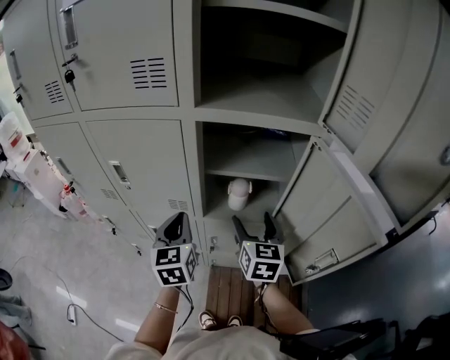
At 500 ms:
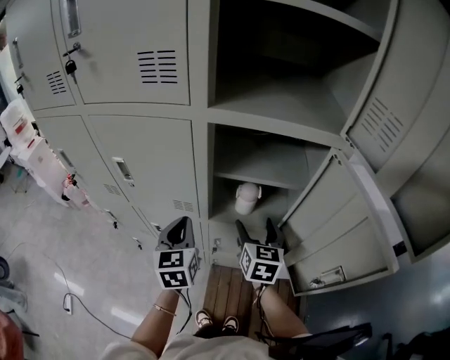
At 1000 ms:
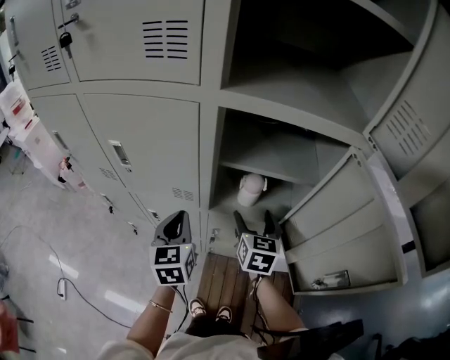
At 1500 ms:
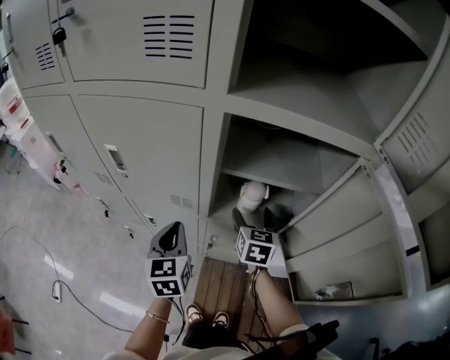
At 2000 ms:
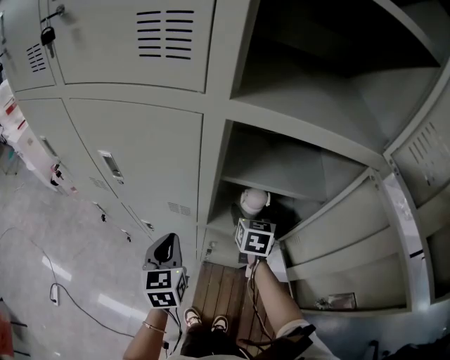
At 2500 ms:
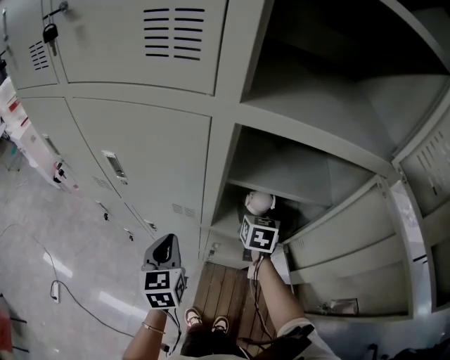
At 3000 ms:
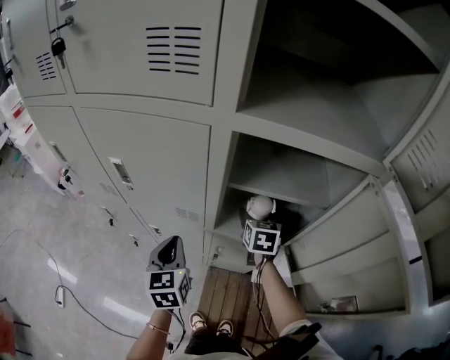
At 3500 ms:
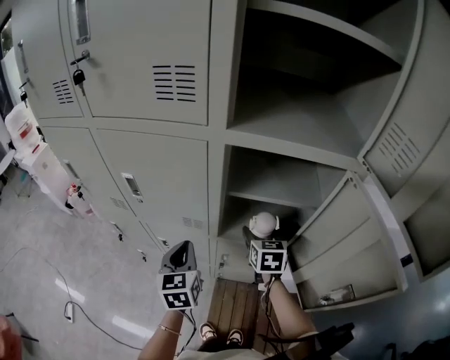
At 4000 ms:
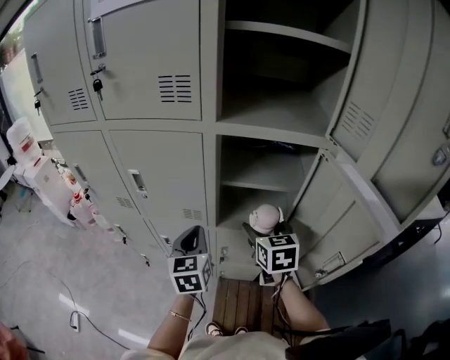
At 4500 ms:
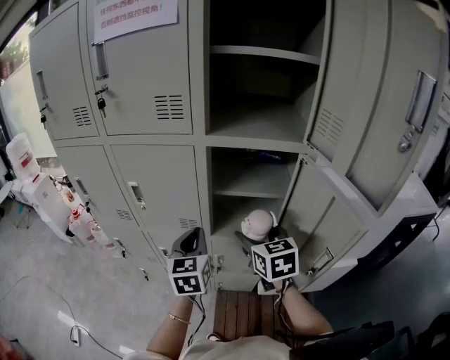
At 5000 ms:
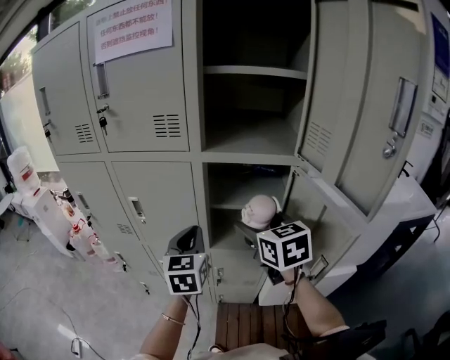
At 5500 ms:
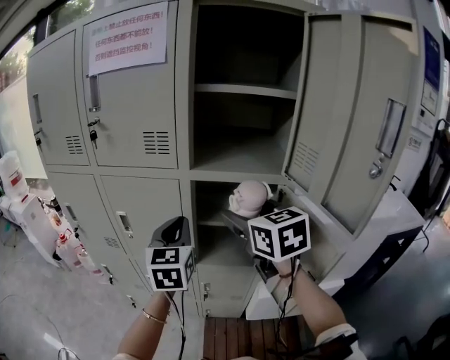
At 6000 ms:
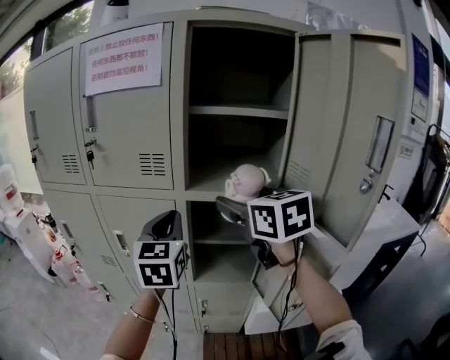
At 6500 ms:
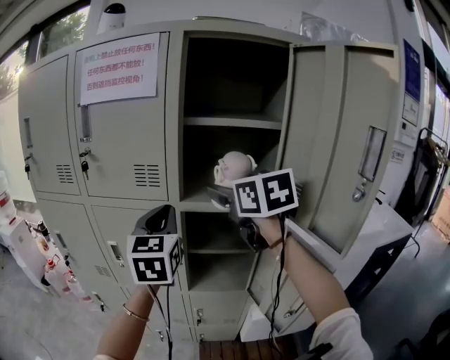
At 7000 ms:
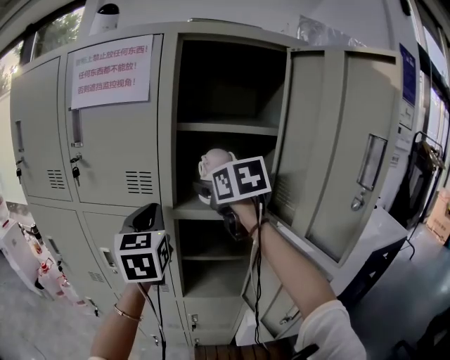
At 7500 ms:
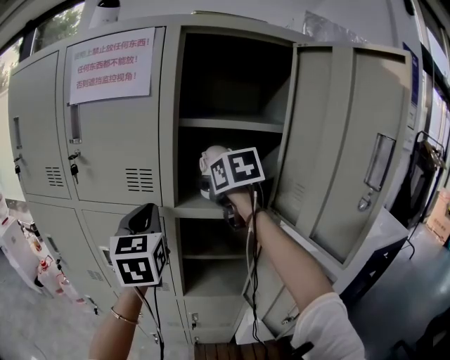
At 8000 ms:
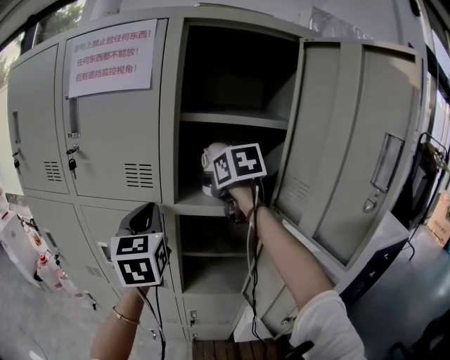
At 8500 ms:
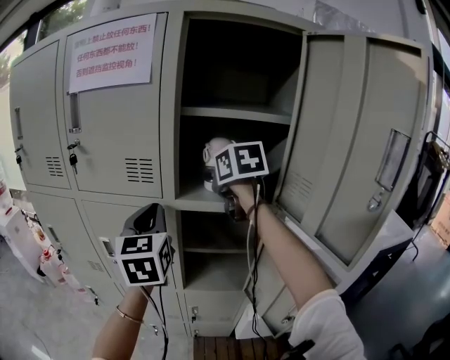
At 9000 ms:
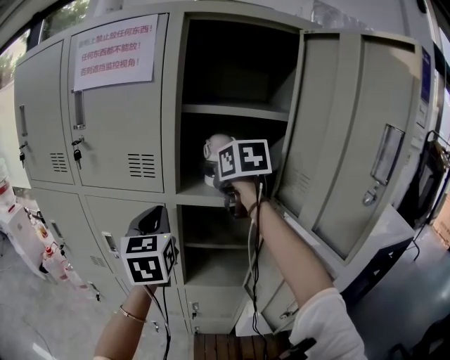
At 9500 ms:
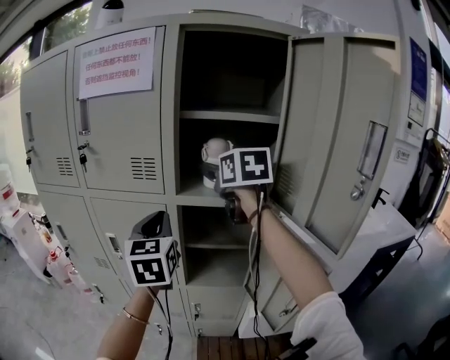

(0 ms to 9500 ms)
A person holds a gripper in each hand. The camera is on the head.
0 ms - 2000 ms: The right gripper travels forward and downward by approximately 20 cm. The left gripper shifts roughly 10 cm downward.
2000 ms - 4000 ms: The right gripper heads backward and upward, covering some 20 cm. Meanwhile the left gripper moves upward, some 10 cm.
4000 ms - 5500 ms: The grippers both shift upward by roughly 20 cm.
5500 ms - 7500 ms: The right gripper goes approximately 20 cm forward and upward, while the left gripper goes approximately 15 cm upward and forward.
7500 ms - 9500 ms: The left gripper ends up approximately 5 cm from where it was.

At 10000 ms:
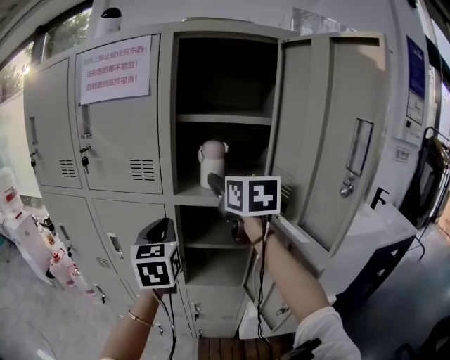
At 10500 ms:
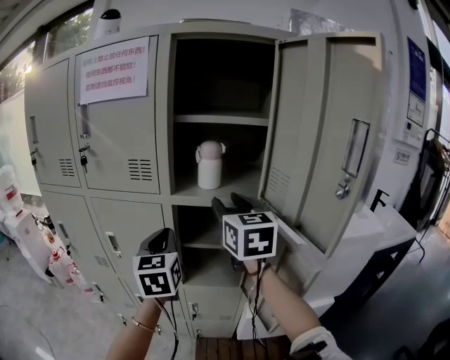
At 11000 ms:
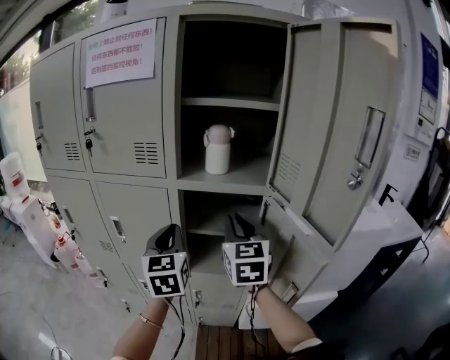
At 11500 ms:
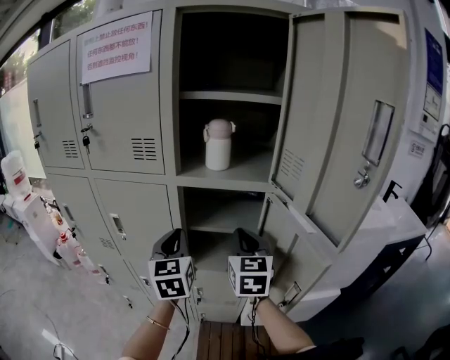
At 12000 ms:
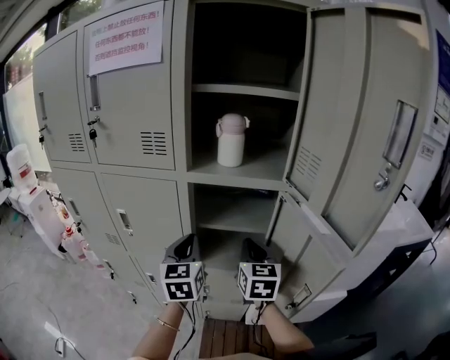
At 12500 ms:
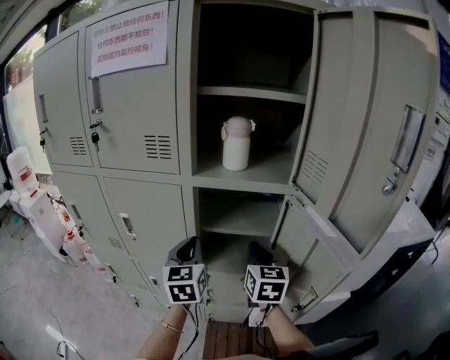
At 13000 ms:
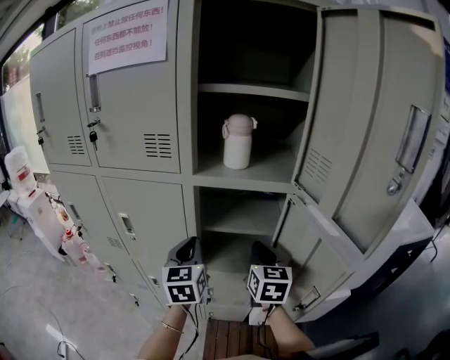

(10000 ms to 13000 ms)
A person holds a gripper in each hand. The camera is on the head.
10000 ms - 11500 ms: The left gripper shifts approximately 10 cm downward; the right gripper goes roughly 20 cm downward, and closes its fingers.
11500 ms - 13000 ms: The left gripper ends up some 5 cm from where it was, while the right gripper heads downward, covering approximately 5 cm.

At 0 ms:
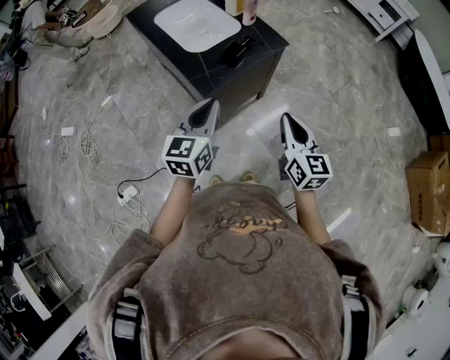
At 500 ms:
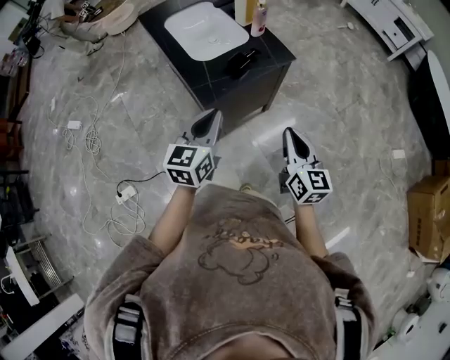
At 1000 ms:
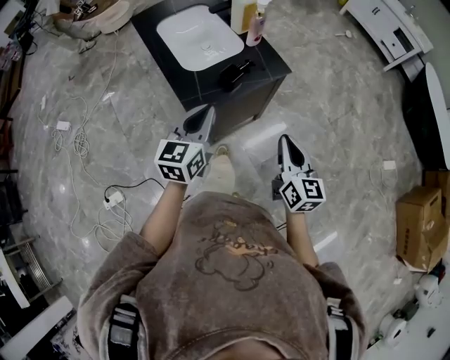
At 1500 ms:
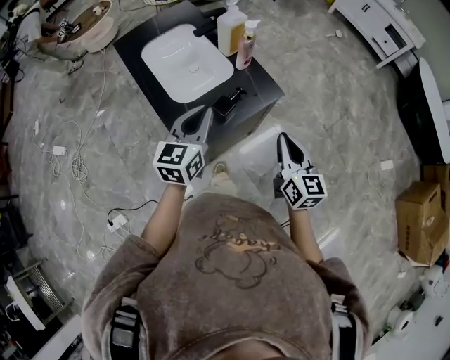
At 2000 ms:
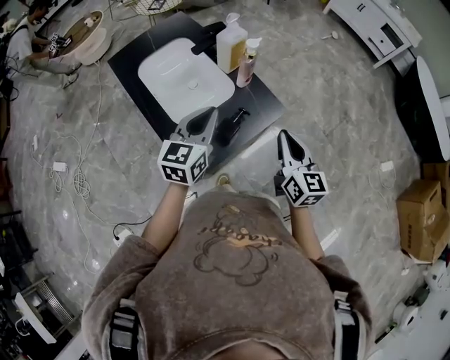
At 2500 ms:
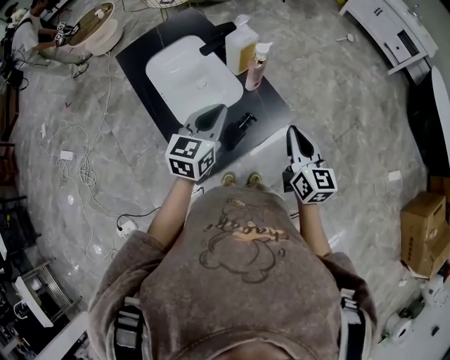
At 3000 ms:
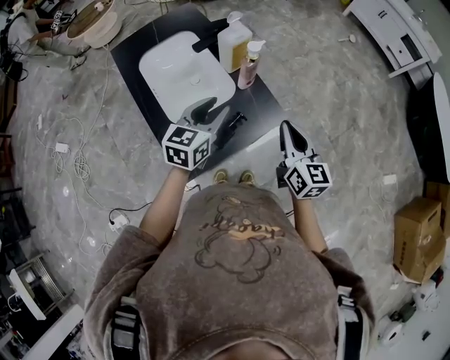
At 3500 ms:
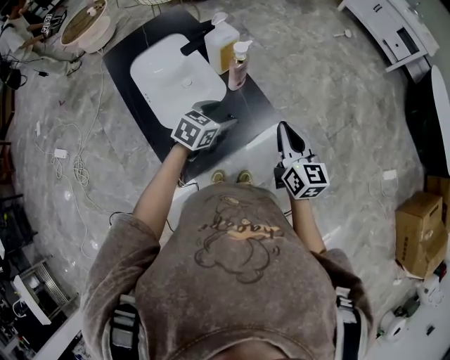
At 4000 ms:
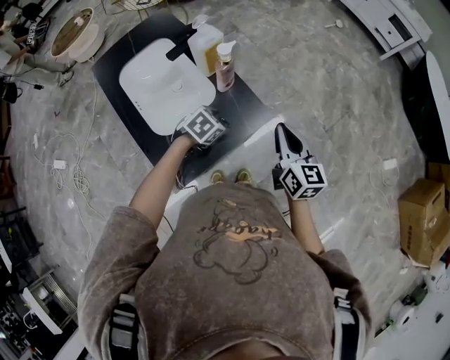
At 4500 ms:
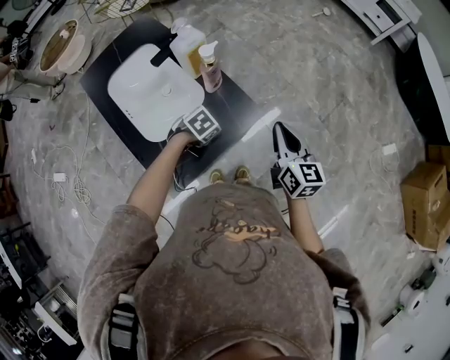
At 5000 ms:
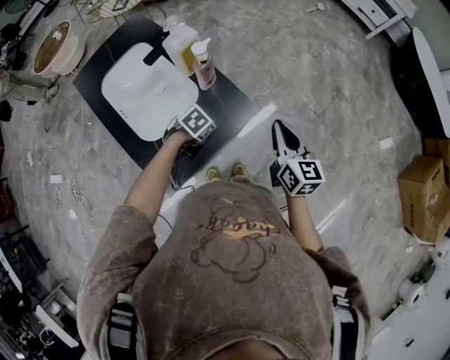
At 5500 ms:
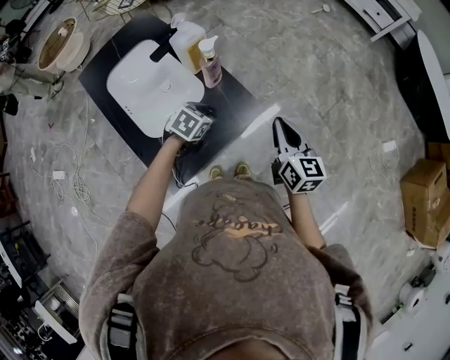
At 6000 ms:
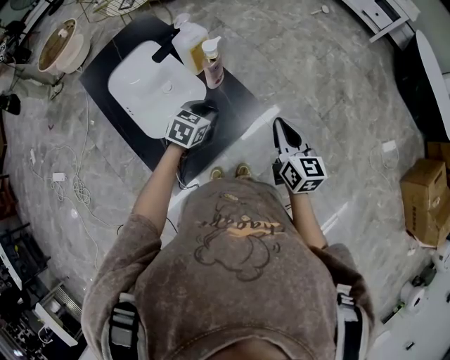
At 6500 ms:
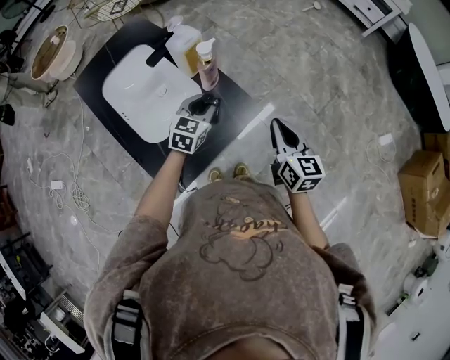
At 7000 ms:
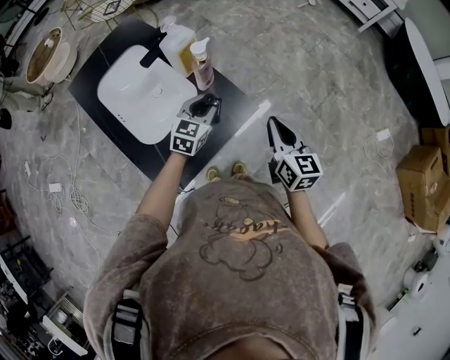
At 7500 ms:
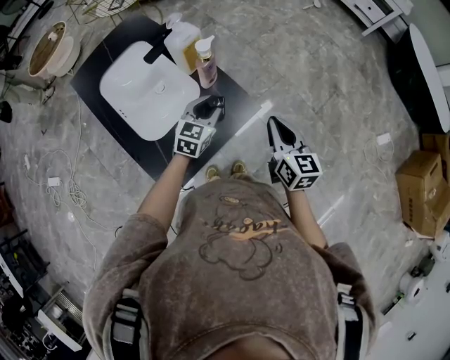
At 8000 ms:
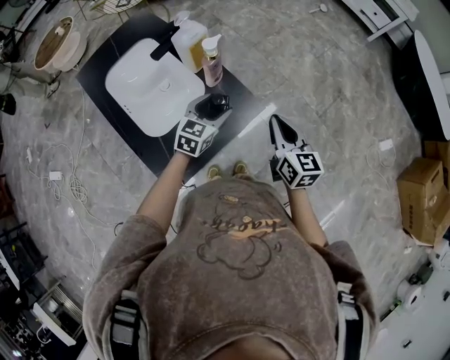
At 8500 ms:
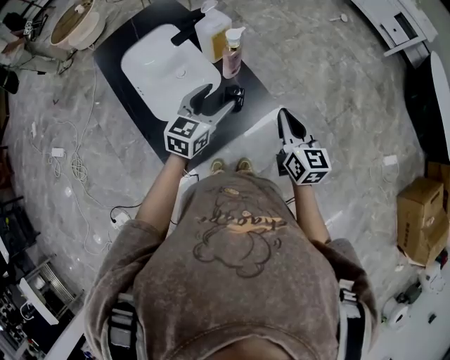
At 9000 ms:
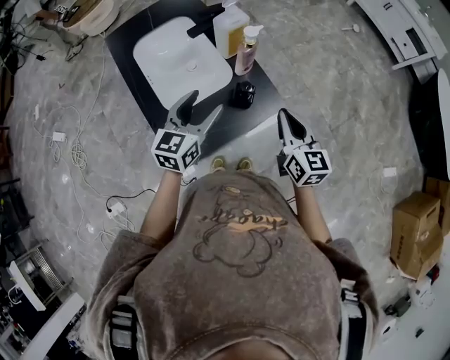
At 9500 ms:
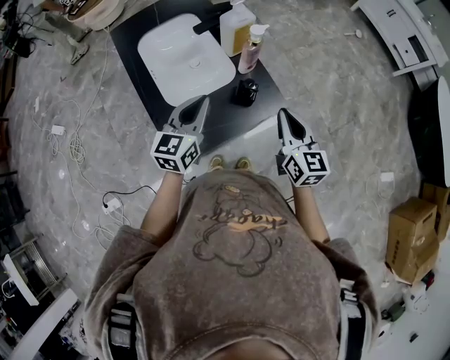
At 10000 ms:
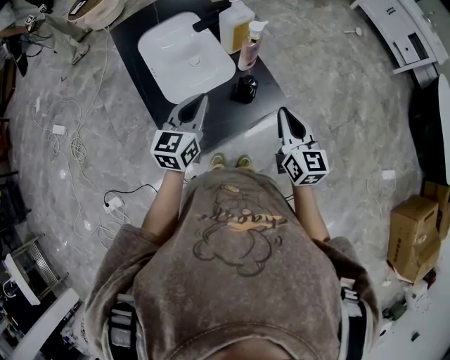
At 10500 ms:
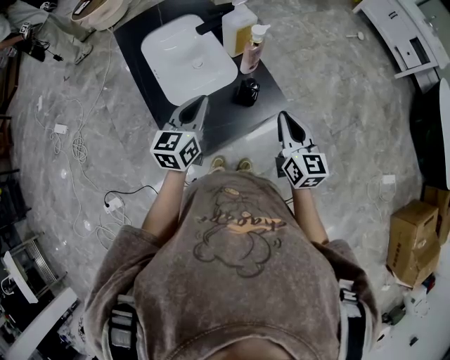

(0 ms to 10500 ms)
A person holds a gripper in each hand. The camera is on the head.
0 ms - 2000 ms: The grippers both shift forward by some 30 cm.
2000 ms - 4000 ms: The left gripper travels downward, to the right and forward by roughly 25 cm, points its fingers approximately 50 degrees further downward, and opens its fingers. The right gripper is displaced forward and to the right by some 10 cm.
4000 ms - 6500 ms: The left gripper moves upward and forward, approximately 10 cm, angles its fingers upward, by roughly 30 degrees, and closes.
6500 ms - 8500 ms: The left gripper heads upward and backward, covering roughly 10 cm, and opens up.
8500 ms - 10500 ms: The right gripper moves approximately 5 cm; the left gripper goes roughly 10 cm to the left and backward, changes its angle by approximately 20 degrees, and closes.

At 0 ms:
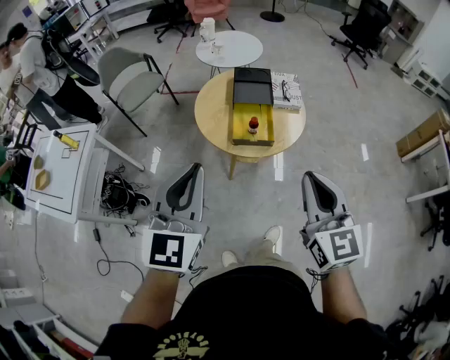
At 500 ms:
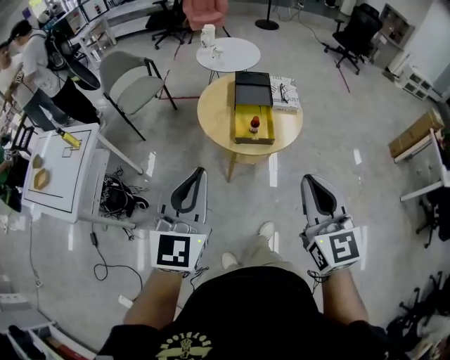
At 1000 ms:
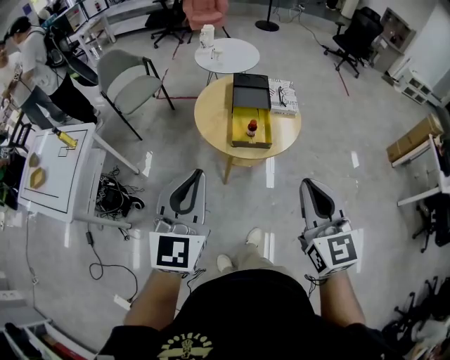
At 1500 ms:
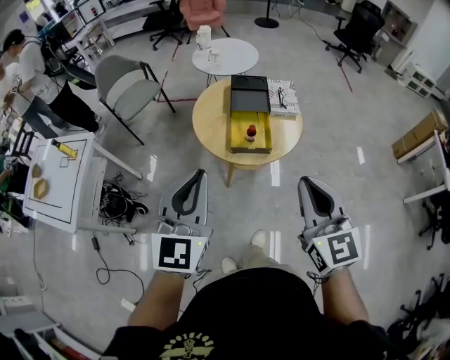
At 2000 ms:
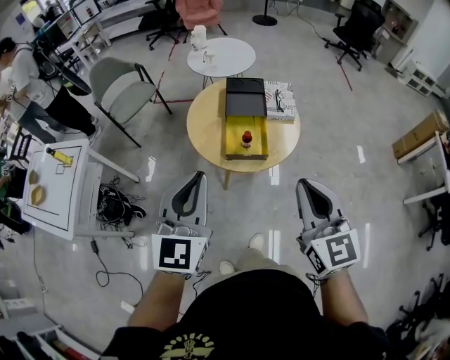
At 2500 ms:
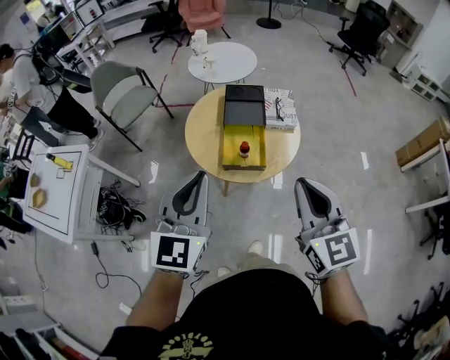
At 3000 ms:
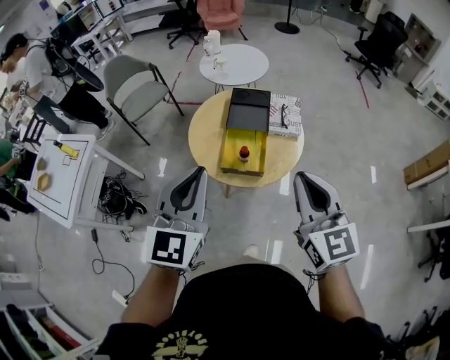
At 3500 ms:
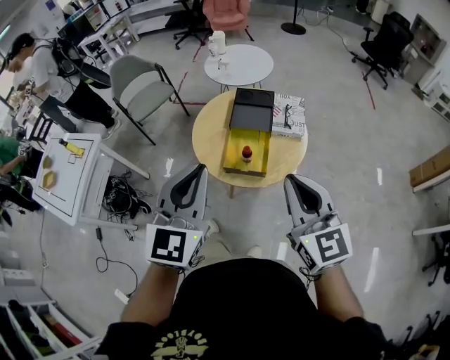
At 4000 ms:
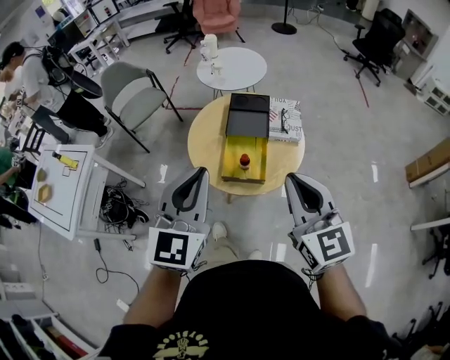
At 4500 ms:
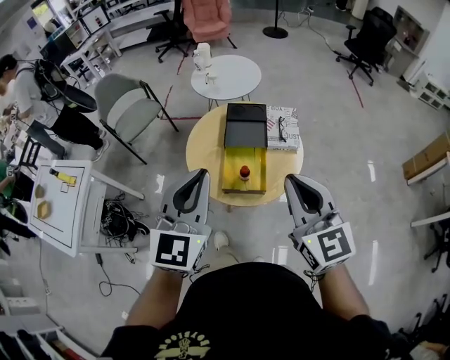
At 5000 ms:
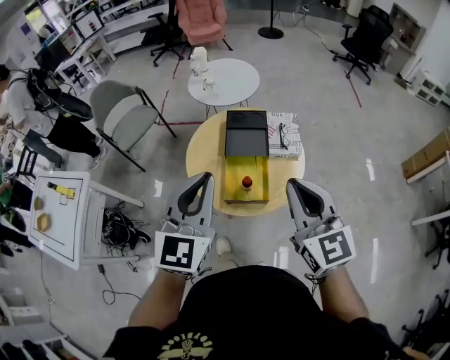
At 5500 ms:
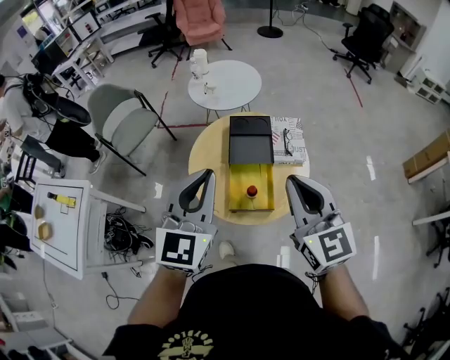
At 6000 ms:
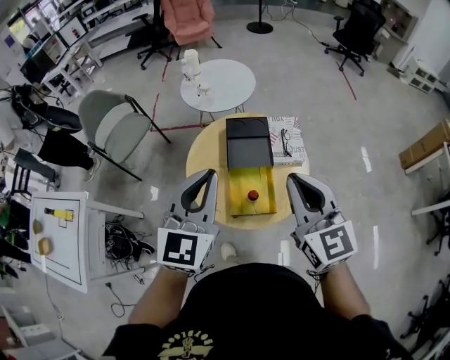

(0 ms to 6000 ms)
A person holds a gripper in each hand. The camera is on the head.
0 ms - 2000 ms: The left gripper is displaced forward by approximately 5 cm.
2000 ms - 4000 ms: The right gripper heads forward, covering roughly 10 cm; the left gripper moves forward and to the right, approximately 10 cm.
4000 ms - 6000 ms: The grippers both shift forward by about 15 cm.
